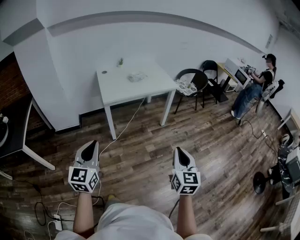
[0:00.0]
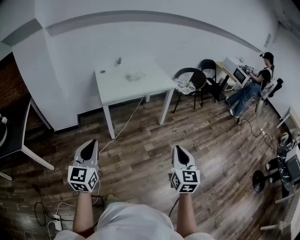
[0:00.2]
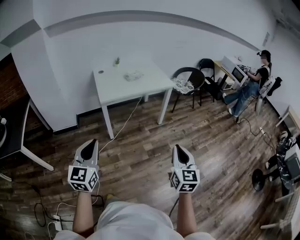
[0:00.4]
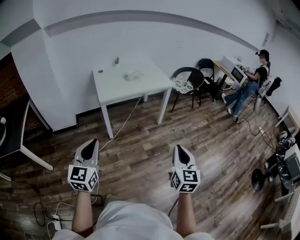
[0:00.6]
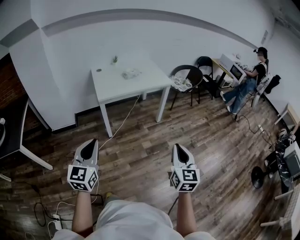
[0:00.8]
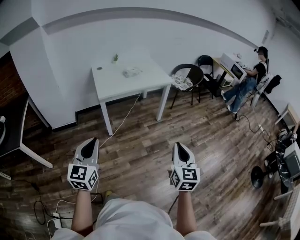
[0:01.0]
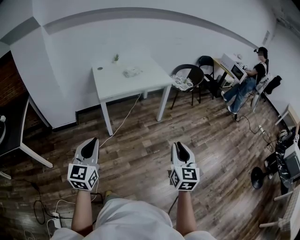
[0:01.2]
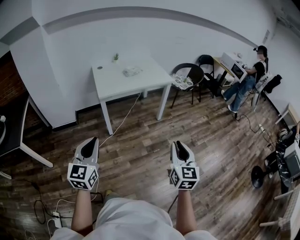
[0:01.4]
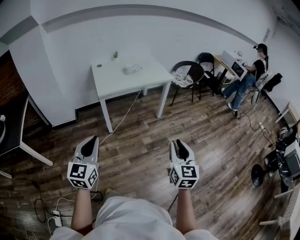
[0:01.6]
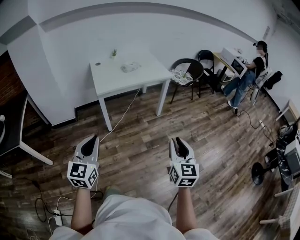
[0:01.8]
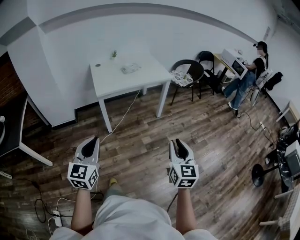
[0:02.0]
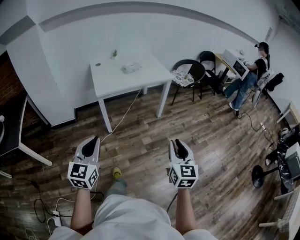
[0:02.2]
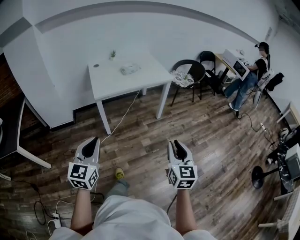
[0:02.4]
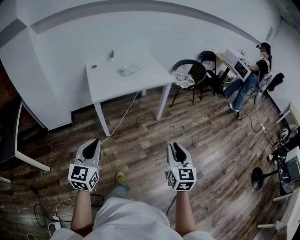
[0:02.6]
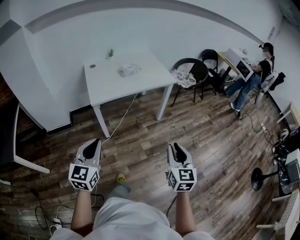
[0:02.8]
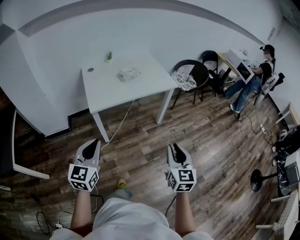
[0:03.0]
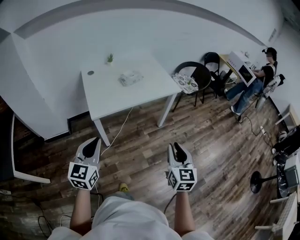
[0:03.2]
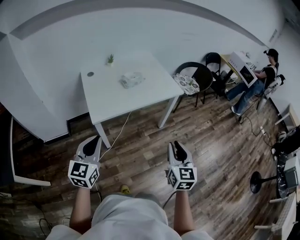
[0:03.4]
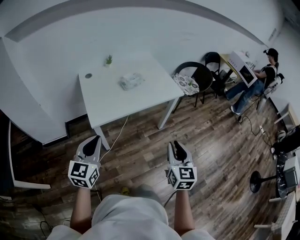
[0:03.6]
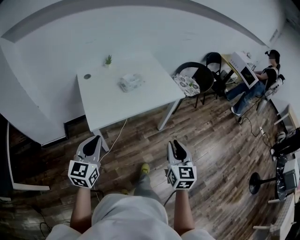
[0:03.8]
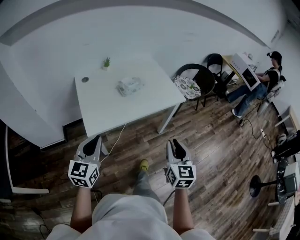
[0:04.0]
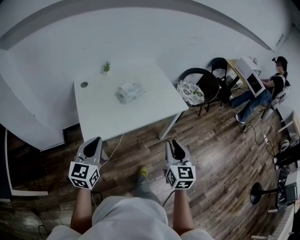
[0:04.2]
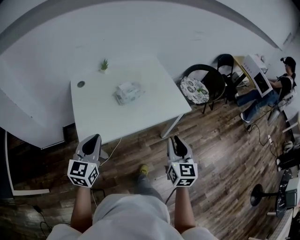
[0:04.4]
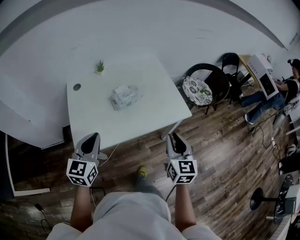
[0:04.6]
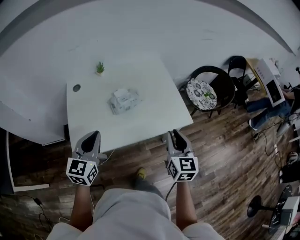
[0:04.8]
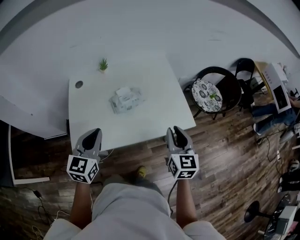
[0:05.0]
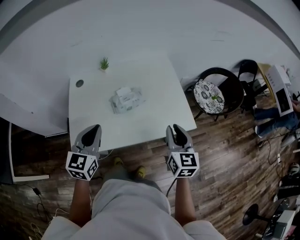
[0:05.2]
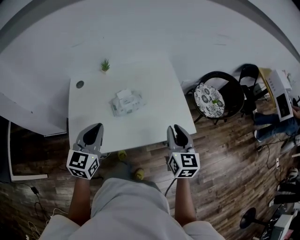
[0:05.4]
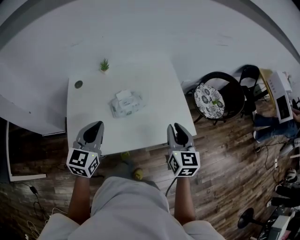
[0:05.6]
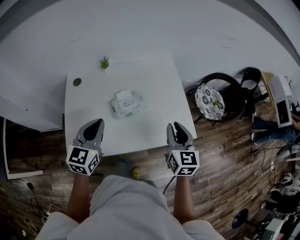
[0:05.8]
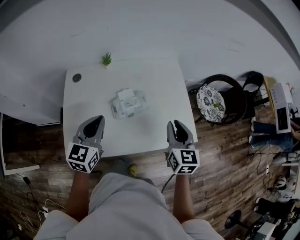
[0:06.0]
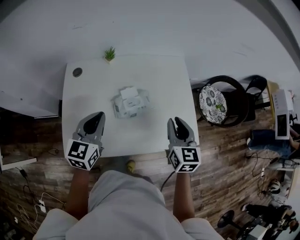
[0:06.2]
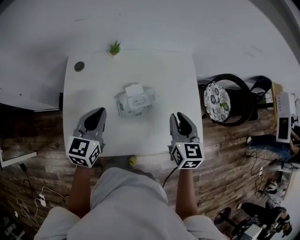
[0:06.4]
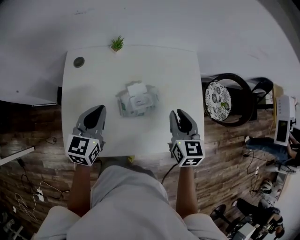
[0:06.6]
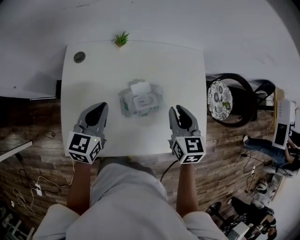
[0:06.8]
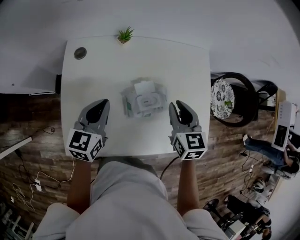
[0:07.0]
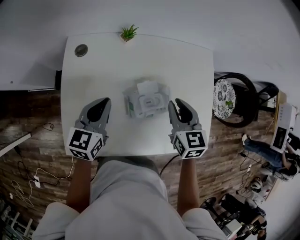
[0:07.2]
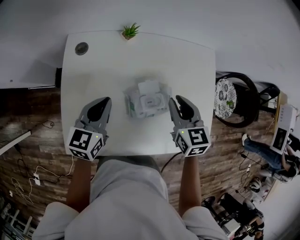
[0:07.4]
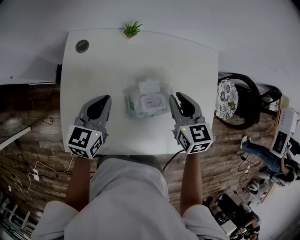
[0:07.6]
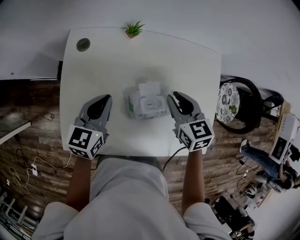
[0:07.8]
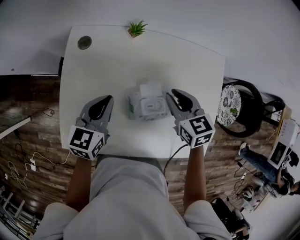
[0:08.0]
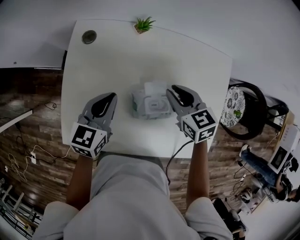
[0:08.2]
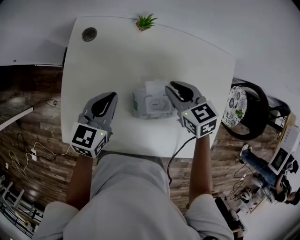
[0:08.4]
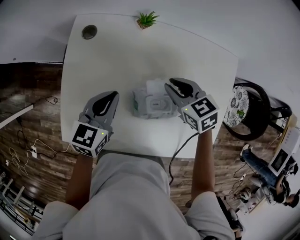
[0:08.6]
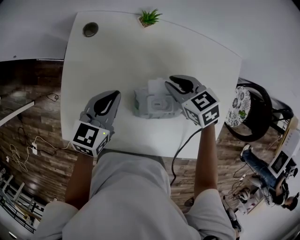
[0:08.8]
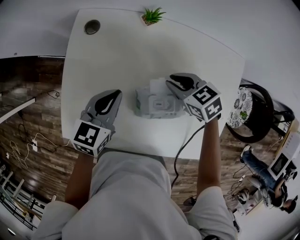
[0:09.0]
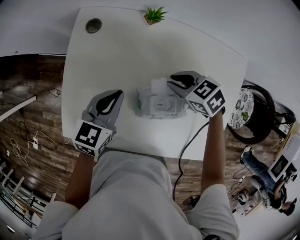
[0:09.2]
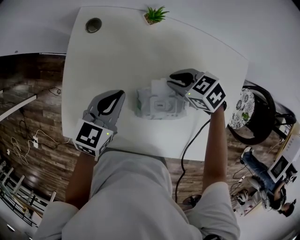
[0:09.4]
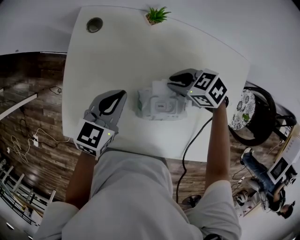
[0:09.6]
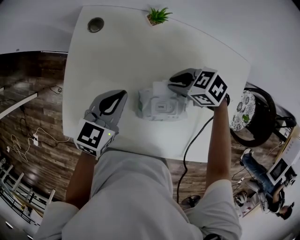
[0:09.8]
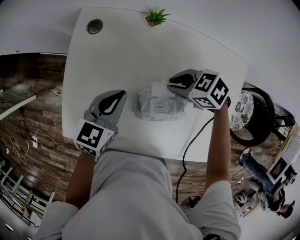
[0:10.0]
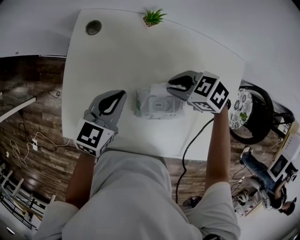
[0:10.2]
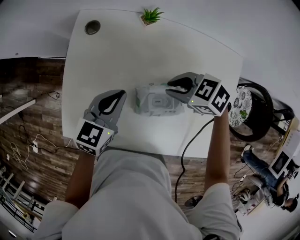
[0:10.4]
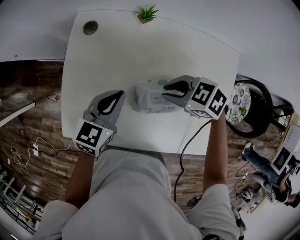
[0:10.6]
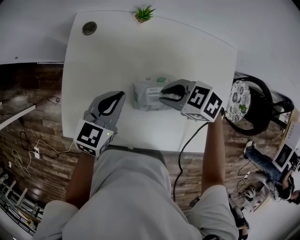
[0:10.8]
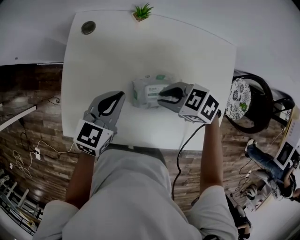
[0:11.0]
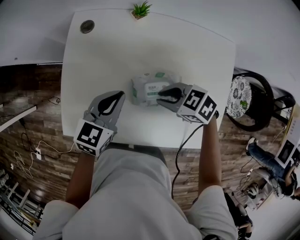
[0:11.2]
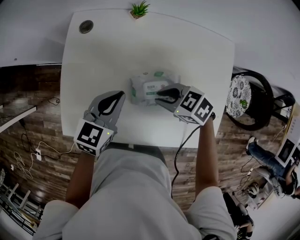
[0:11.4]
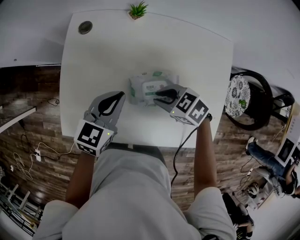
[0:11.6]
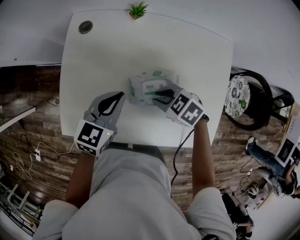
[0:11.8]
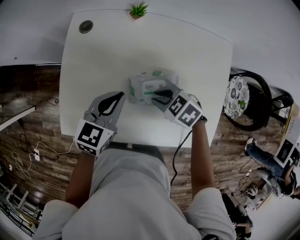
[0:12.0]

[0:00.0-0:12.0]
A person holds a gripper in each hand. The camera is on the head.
0:00.0 to 0:01.6: The right gripper opens up.
0:01.6 to 0:03.0: Both grippers move forward, roughly 25 cm.
0:03.0 to 0:04.4: The grippers both shift forward by some 40 cm.
0:04.4 to 0:06.0: Both grippers travel together forward, approximately 30 cm.
0:06.0 to 0:07.6: The left gripper heads forward, downward and to the left, covering about 20 cm; the right gripper shifts about 25 cm forward, to the left and downward, and changes its angle by roughly 30 degrees.
0:07.6 to 0:09.0: The right gripper moves downward, some 10 cm, and swivels about 40 degrees.
0:09.0 to 0:10.4: The right gripper ends up roughly 5 cm from where it was, and rotates some 20 degrees.
0:10.4 to 0:12.0: The right gripper moves roughly 10 cm, while the left gripper ends up roughly 5 cm from where it was.

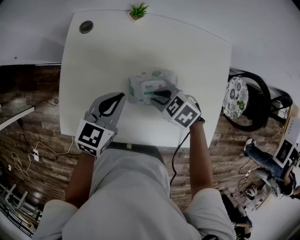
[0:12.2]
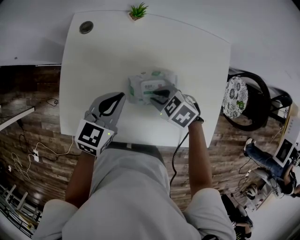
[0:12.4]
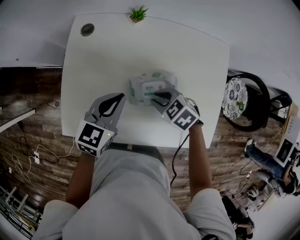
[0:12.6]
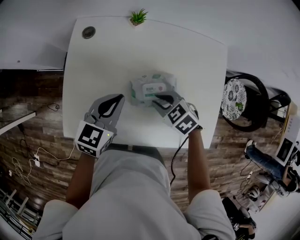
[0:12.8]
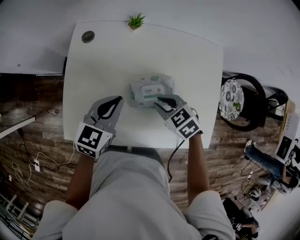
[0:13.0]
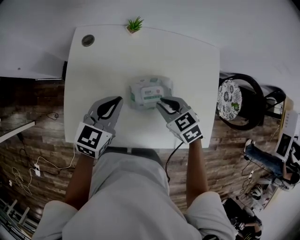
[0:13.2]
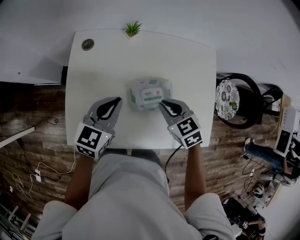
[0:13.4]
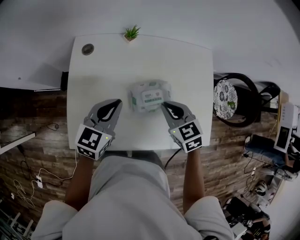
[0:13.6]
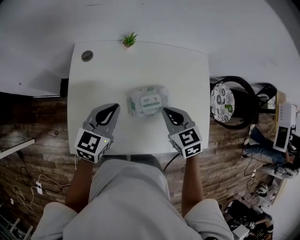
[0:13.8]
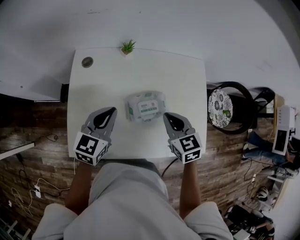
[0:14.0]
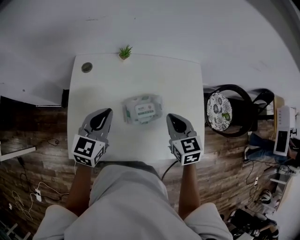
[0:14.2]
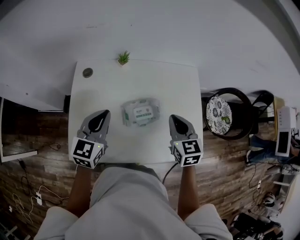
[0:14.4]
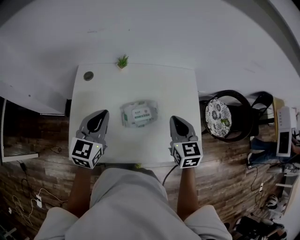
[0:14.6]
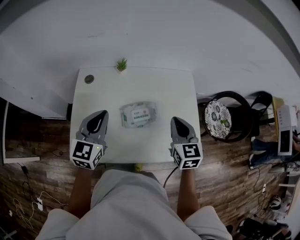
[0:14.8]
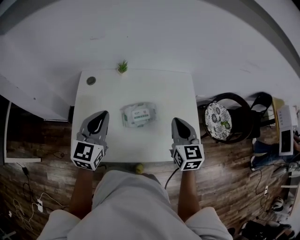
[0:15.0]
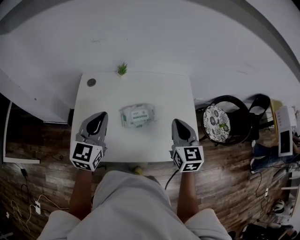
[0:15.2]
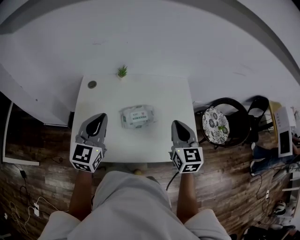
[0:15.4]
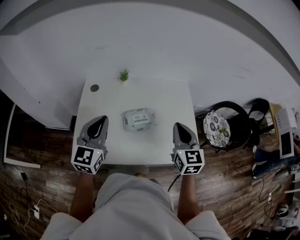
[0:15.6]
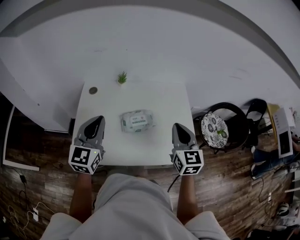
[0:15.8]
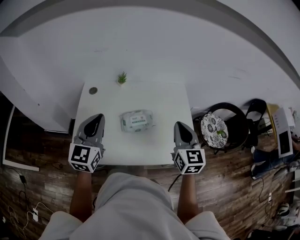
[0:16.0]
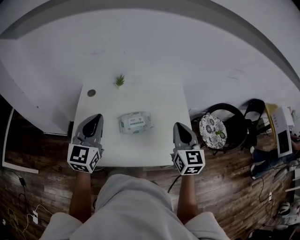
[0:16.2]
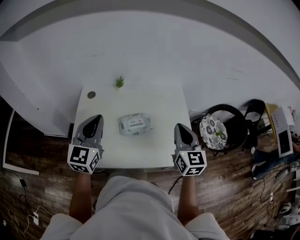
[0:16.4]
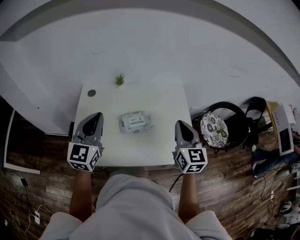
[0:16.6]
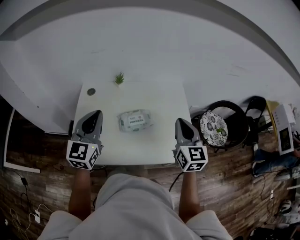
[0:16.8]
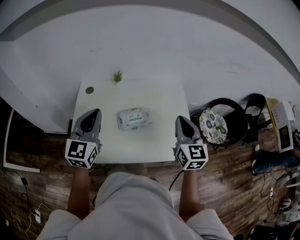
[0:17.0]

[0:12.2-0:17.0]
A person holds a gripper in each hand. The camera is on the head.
0:12.2 to 0:13.8: The right gripper is displaced upward by roughly 10 cm, and changes its angle by about 40 degrees, while the left gripper moves upward, approximately 5 cm.
0:13.8 to 0:15.4: The right gripper shifts some 20 cm upward, to the right and backward, and rotates roughly 30 degrees; the left gripper moves upward and backward, about 15 cm, and turns by about 20 degrees.
0:15.4 to 0:17.0: The right gripper ends up some 5 cm from where it was.

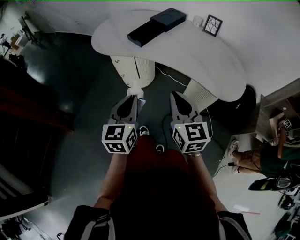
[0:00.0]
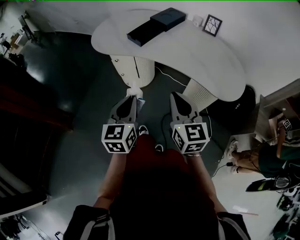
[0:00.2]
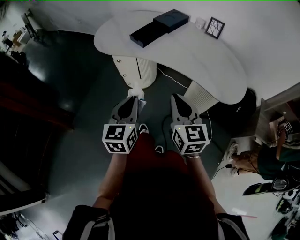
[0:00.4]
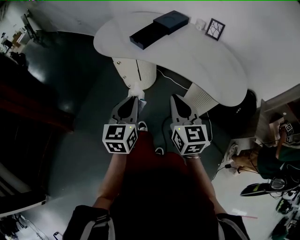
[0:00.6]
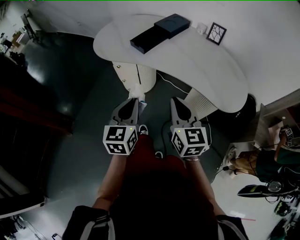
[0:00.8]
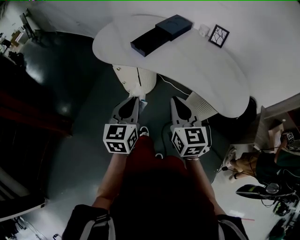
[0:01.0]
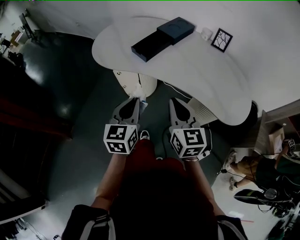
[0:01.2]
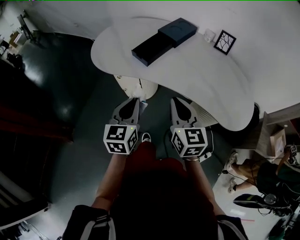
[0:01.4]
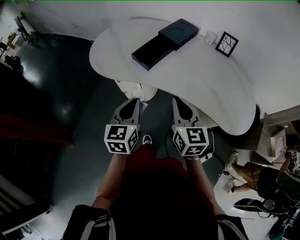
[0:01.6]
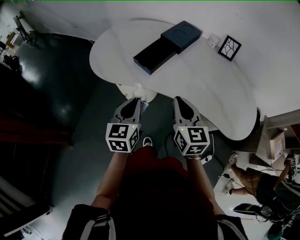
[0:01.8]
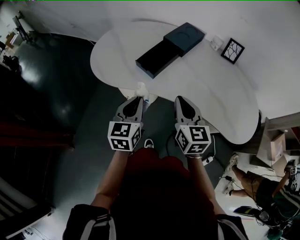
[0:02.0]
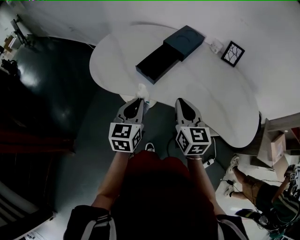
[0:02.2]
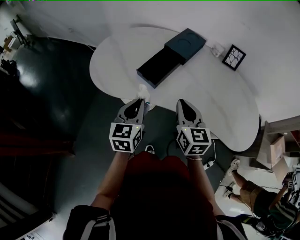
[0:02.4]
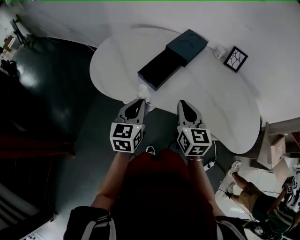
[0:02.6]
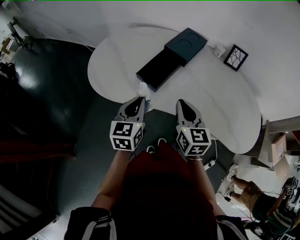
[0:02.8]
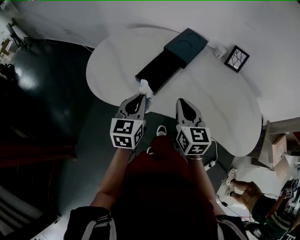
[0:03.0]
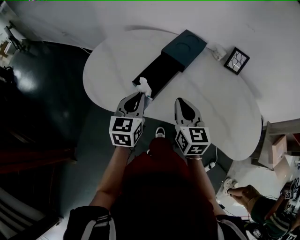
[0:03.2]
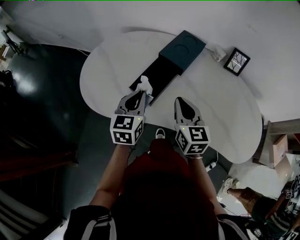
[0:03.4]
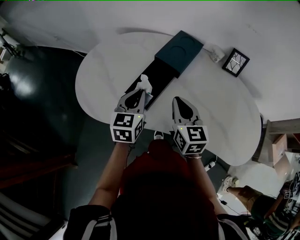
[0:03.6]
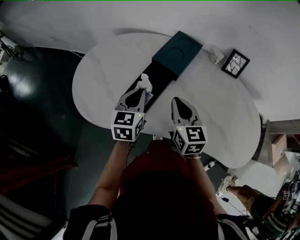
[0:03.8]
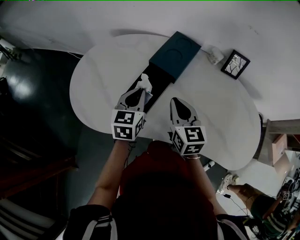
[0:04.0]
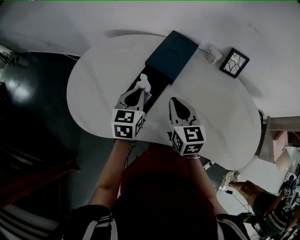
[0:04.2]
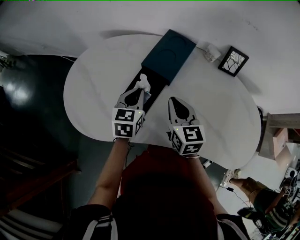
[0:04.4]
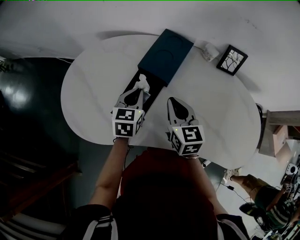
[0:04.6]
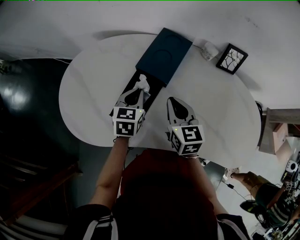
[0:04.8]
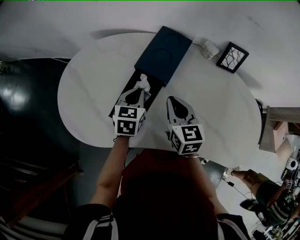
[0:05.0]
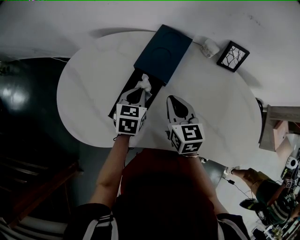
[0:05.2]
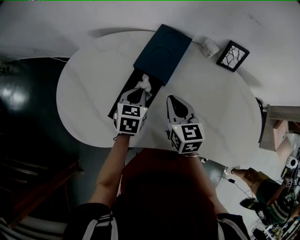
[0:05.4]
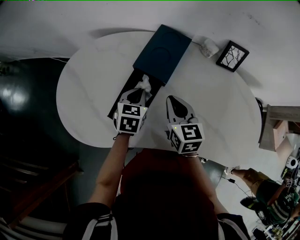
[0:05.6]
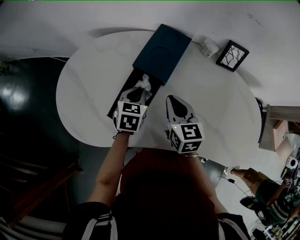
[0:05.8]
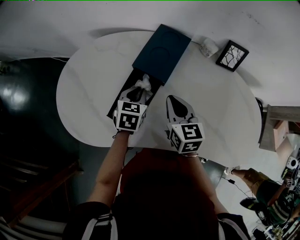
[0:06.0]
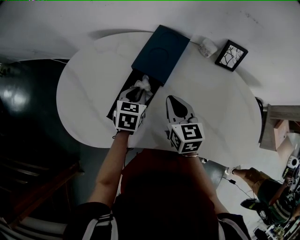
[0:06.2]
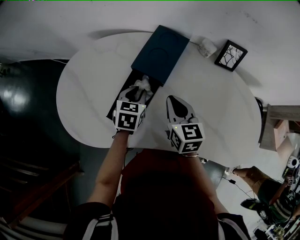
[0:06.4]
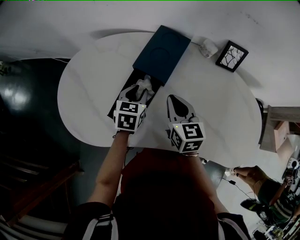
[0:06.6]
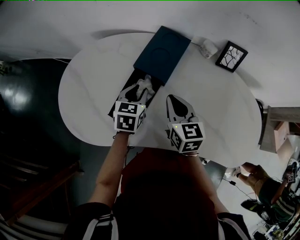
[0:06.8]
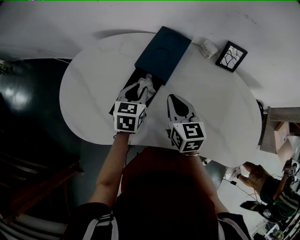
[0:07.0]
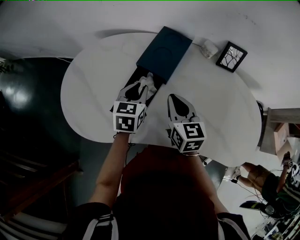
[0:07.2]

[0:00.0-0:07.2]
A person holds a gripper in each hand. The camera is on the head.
0:00.0 to 0:01.4: The grippers both shift forward by about 15 cm.
0:01.4 to 0:02.8: The two grippers go some 15 cm forward.
0:02.8 to 0:04.4: The two grippers go roughly 20 cm forward.
0:04.4 to 0:05.8: The left gripper goes approximately 5 cm downward.
0:05.8 to 0:07.2: The left gripper moves upward, approximately 5 cm.
